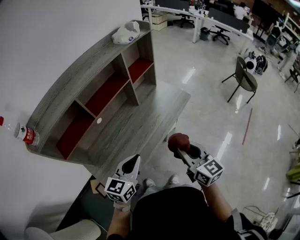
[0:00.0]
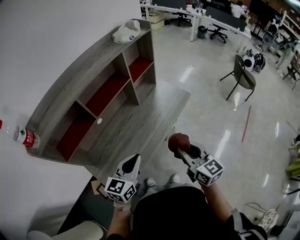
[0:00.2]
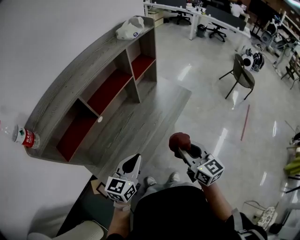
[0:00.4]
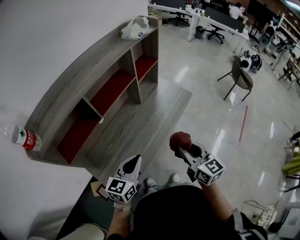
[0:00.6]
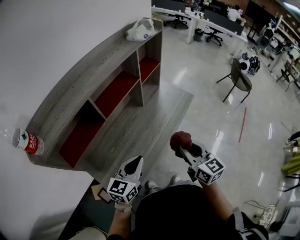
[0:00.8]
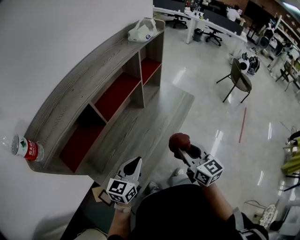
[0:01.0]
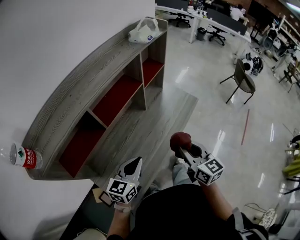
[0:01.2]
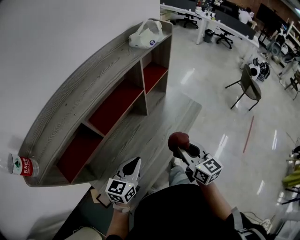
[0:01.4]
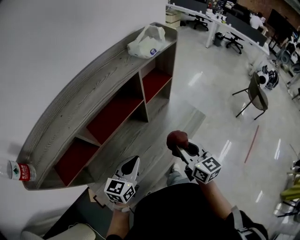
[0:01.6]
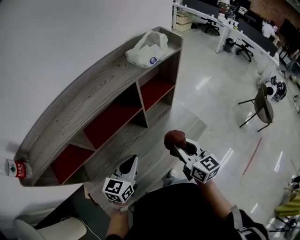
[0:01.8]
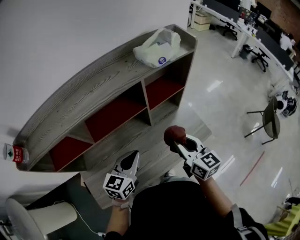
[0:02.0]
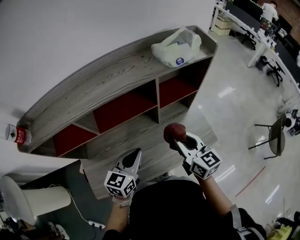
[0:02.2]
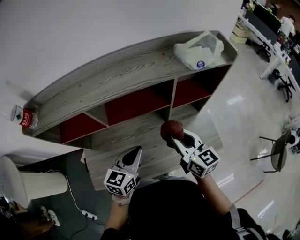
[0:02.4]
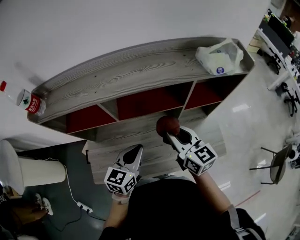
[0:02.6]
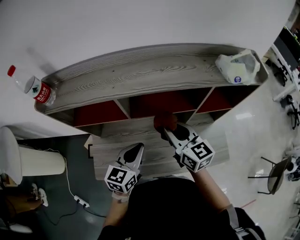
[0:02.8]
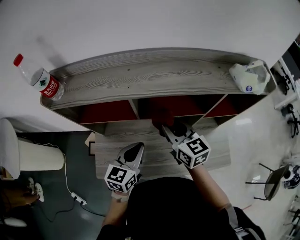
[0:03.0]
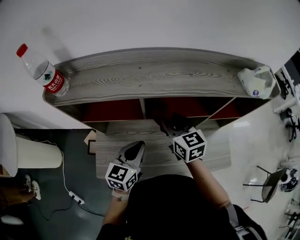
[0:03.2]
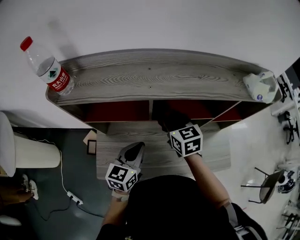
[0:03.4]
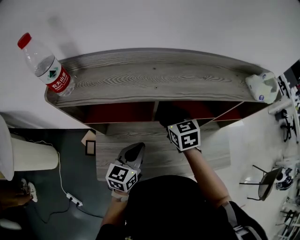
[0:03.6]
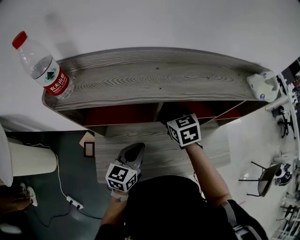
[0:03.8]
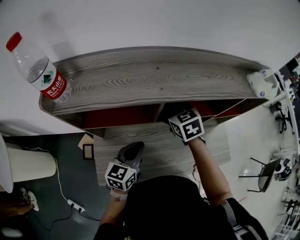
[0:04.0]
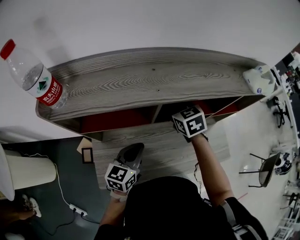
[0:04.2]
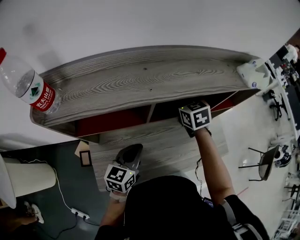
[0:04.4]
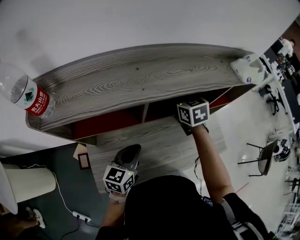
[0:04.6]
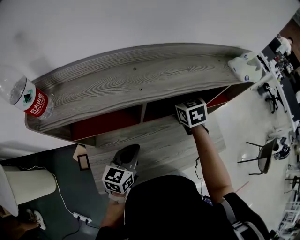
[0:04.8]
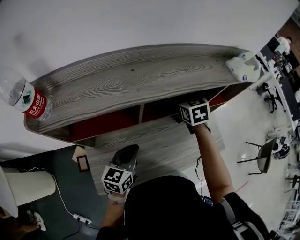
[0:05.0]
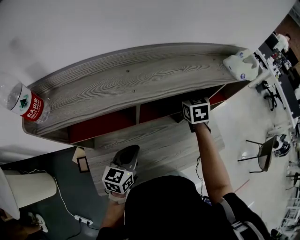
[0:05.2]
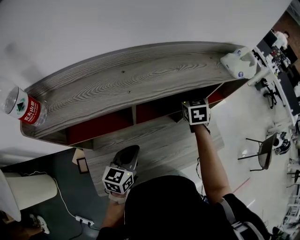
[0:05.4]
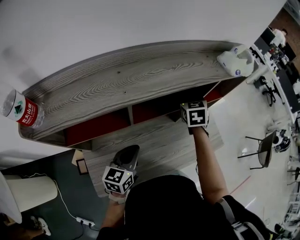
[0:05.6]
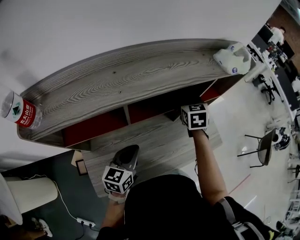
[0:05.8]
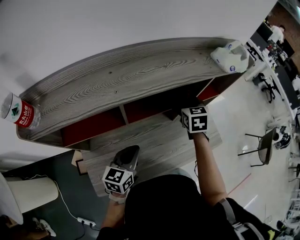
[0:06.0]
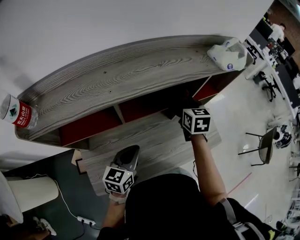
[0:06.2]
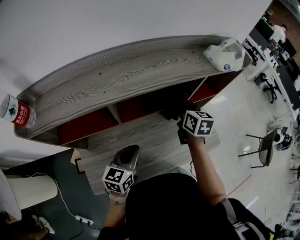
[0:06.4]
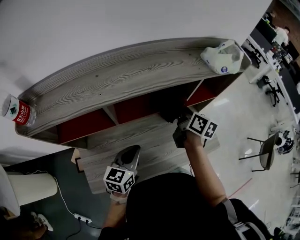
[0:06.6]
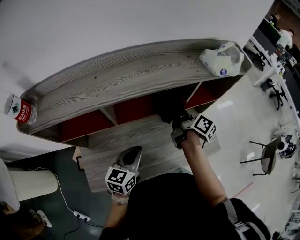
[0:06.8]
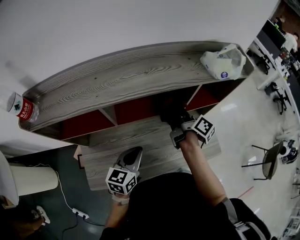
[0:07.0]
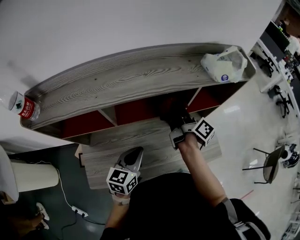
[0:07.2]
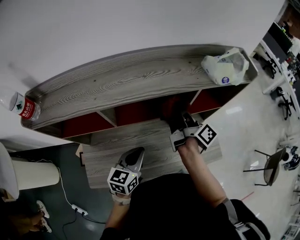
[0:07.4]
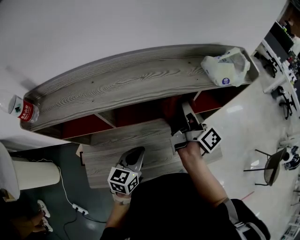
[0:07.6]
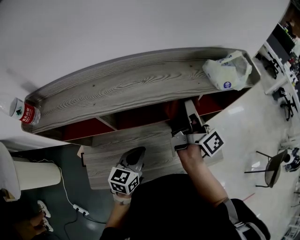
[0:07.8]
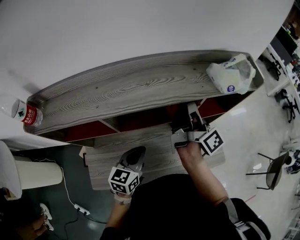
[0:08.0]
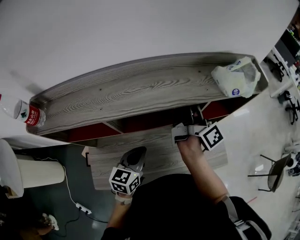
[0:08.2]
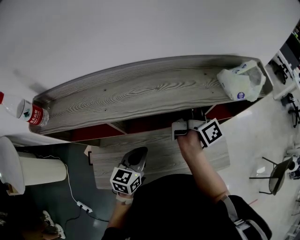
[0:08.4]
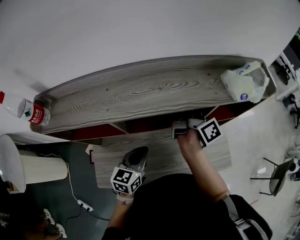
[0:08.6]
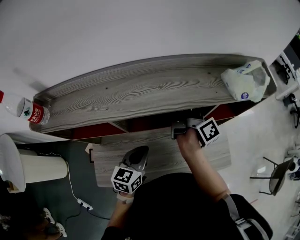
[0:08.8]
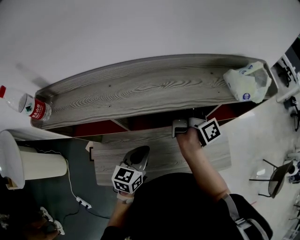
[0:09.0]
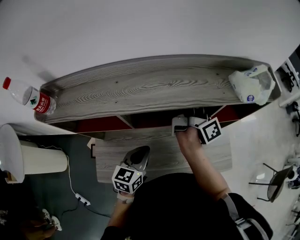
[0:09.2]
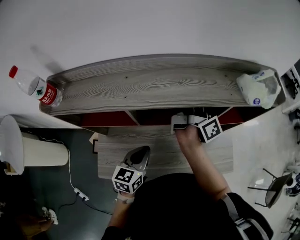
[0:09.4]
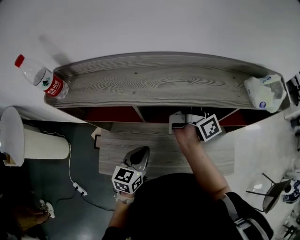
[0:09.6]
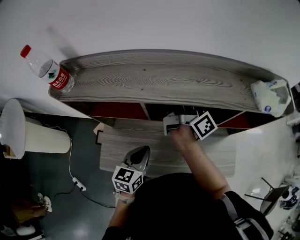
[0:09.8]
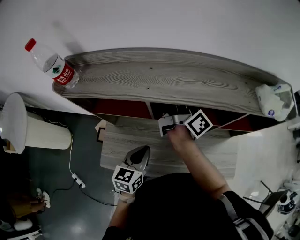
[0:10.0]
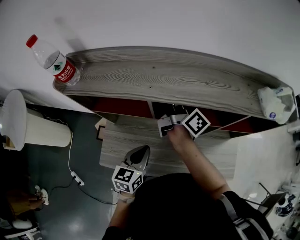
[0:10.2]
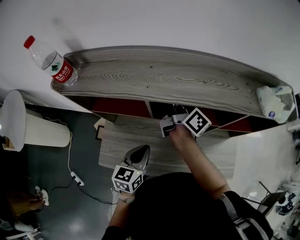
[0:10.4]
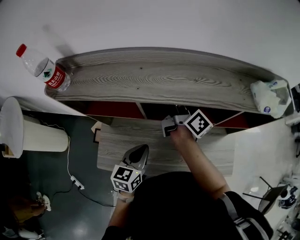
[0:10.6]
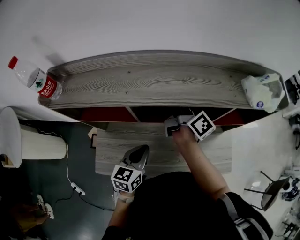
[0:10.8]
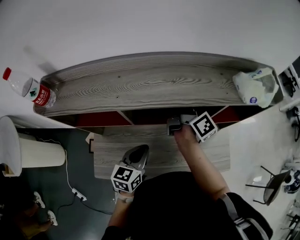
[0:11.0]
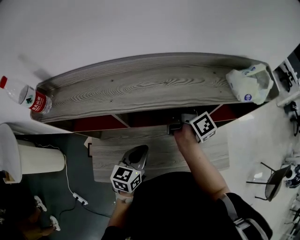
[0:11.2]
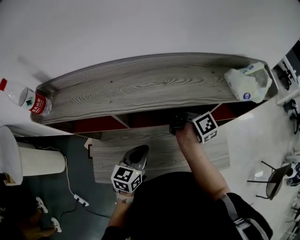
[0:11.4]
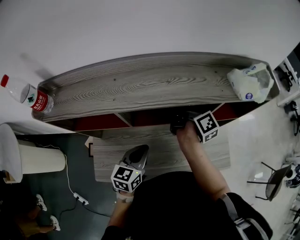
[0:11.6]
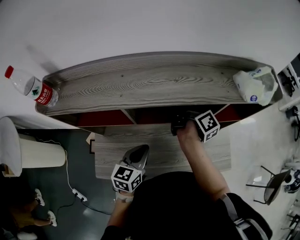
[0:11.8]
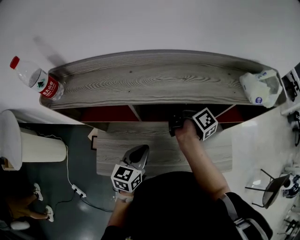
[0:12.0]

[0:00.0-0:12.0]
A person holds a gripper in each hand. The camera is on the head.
0:00.0 to 0:01.6: The grippers both shift forward by about 20 cm.
0:01.6 to 0:03.0: The right gripper moves approximately 25 cm, and turns by approximately 50 degrees, while the left gripper shifts by some 10 cm, and swivels some 40 degrees.
0:03.0 to 0:04.4: The left gripper heads to the left and downward, covering about 10 cm; the right gripper goes approximately 15 cm forward and downward, and turns by approximately 30 degrees.
0:04.4 to 0:06.0: The right gripper moves to the right, some 15 cm, and changes its angle by about 20 degrees, while the left gripper goes approximately 5 cm to the right.
0:06.0 to 0:07.6: The left gripper is displaced to the right by some 10 cm, while the right gripper is displaced upward by about 10 cm, and twists roughly 80 degrees clockwise, seen from behind.
0:07.6 to 0:09.0: The right gripper goes some 5 cm forward.
0:09.0 to 0:10.4: The left gripper shifts by about 10 cm, while the right gripper ends up approximately 20 cm from where it was, and rotates about 40 degrees.
0:10.4 to 0:12.0: The right gripper moves to the right and downward, about 15 cm, and turns by about 30 degrees.

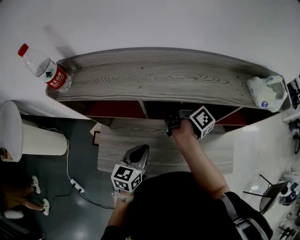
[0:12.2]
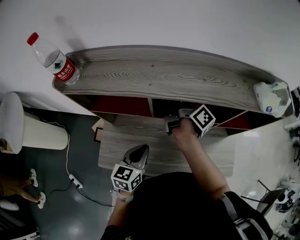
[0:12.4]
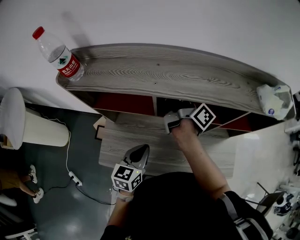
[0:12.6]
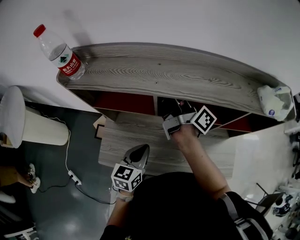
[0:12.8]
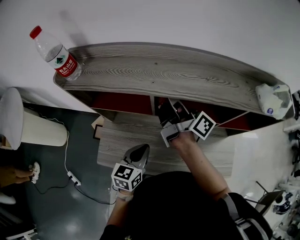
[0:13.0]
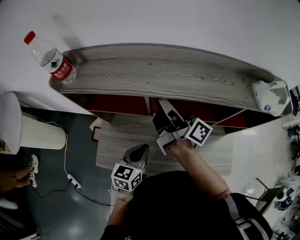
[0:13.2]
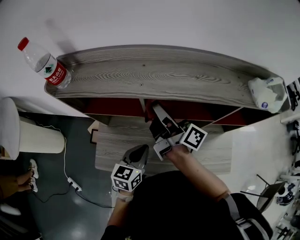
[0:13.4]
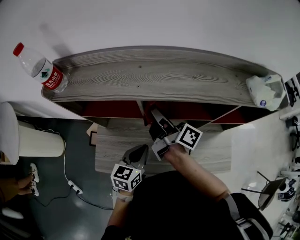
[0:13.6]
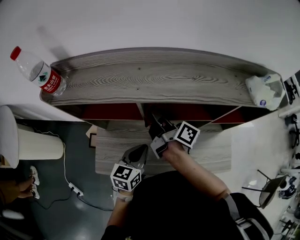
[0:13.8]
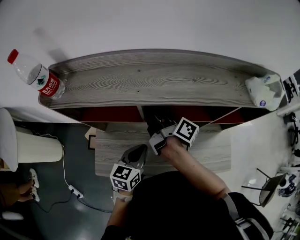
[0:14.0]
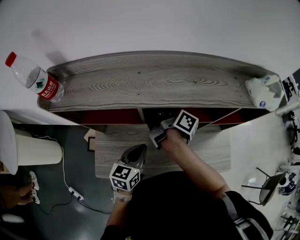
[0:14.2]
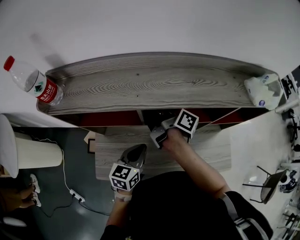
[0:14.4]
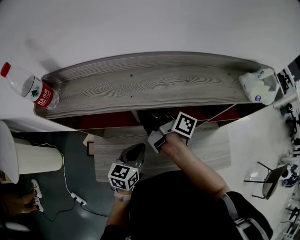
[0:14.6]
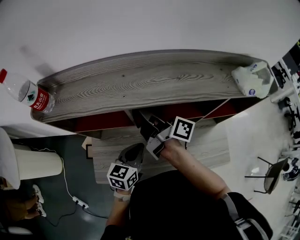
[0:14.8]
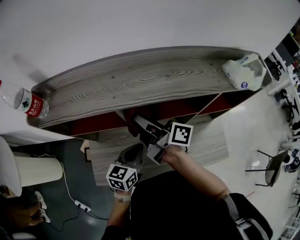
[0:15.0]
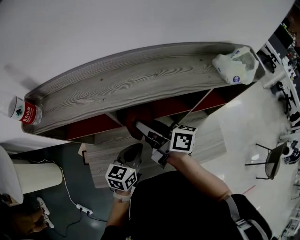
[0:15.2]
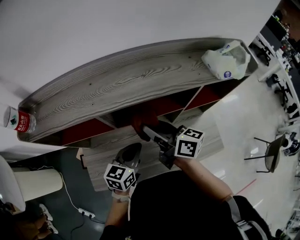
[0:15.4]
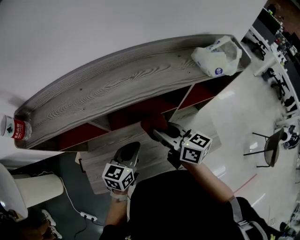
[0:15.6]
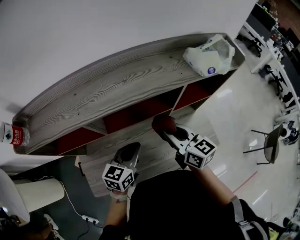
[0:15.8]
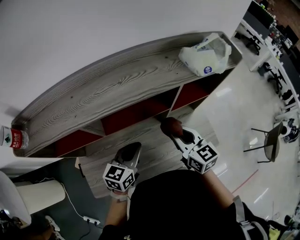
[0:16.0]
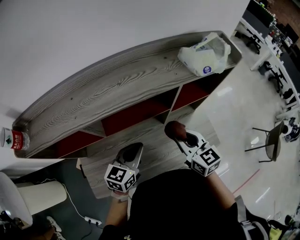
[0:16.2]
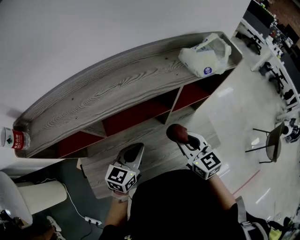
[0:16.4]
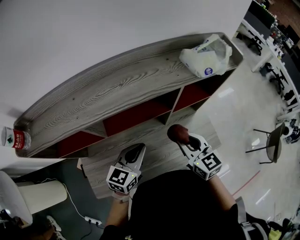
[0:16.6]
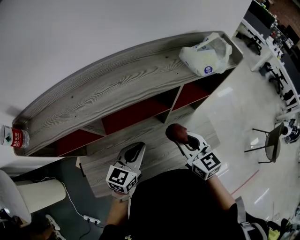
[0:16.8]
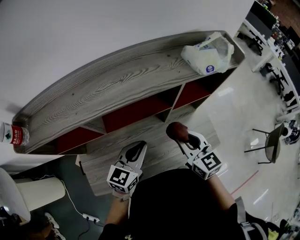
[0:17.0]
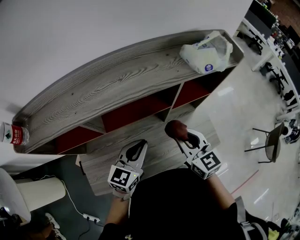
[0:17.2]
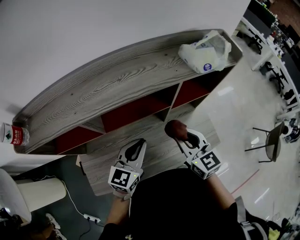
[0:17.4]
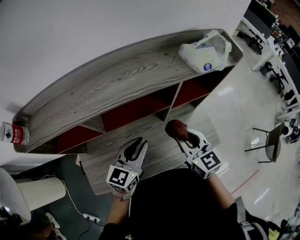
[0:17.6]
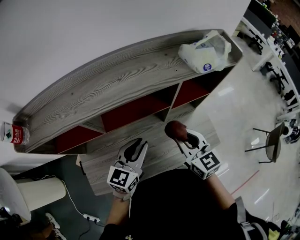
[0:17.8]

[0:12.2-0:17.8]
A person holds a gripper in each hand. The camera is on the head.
0:12.2 to 0:13.6: The right gripper goes roughly 15 cm to the left and backward, and swivels about 30 degrees.
0:13.6 to 0:15.0: The right gripper reaches roughly 5 cm forward, then returns.
0:15.0 to 0:16.4: The right gripper travels to the right by roughly 25 cm, and rolls counterclockwise, seen from behind, by some 60 degrees; the left gripper is displaced to the right by some 10 cm.
0:16.4 to 0:17.8: The grippers stay close to where they were, moving slightly.

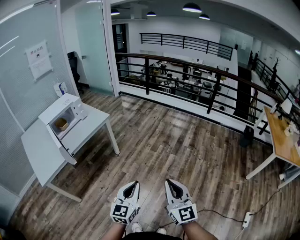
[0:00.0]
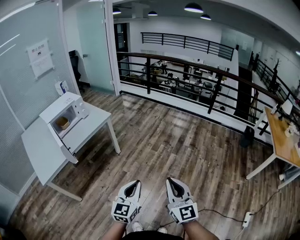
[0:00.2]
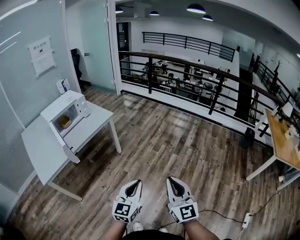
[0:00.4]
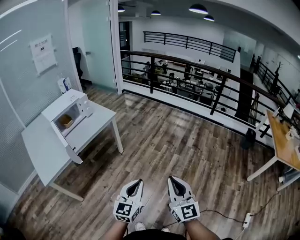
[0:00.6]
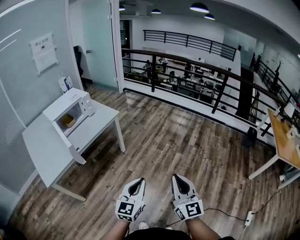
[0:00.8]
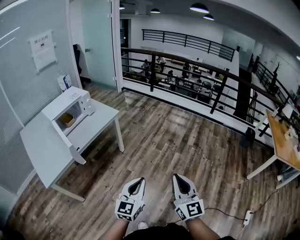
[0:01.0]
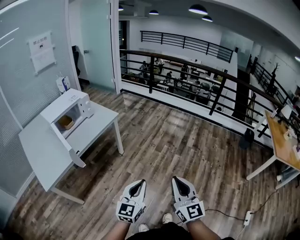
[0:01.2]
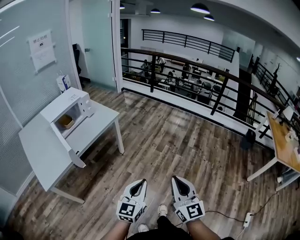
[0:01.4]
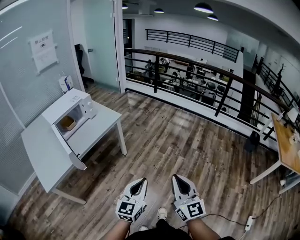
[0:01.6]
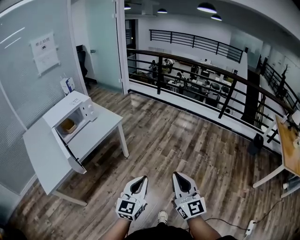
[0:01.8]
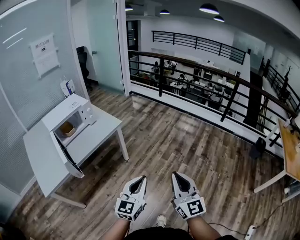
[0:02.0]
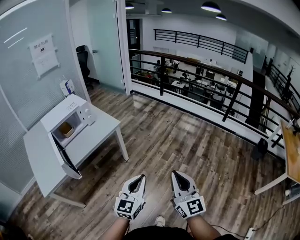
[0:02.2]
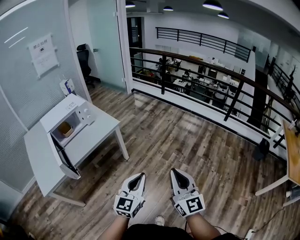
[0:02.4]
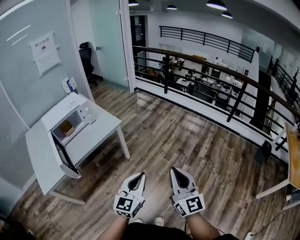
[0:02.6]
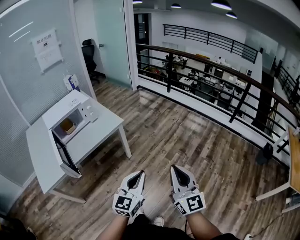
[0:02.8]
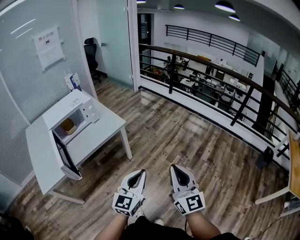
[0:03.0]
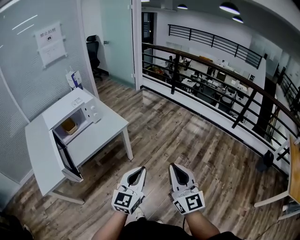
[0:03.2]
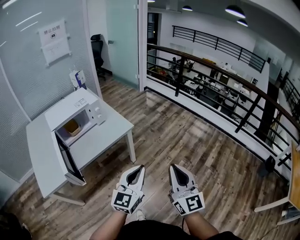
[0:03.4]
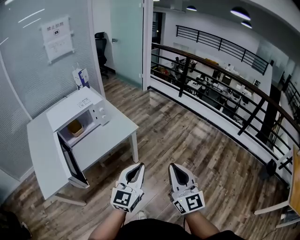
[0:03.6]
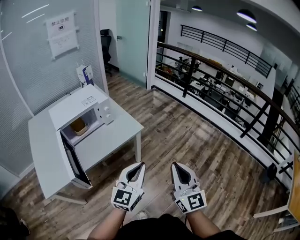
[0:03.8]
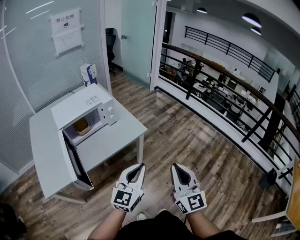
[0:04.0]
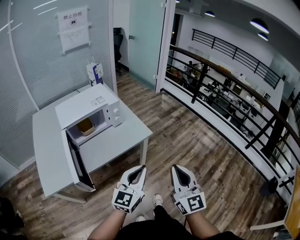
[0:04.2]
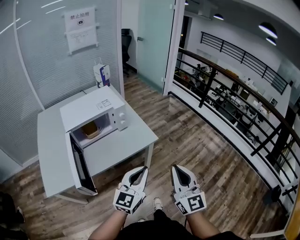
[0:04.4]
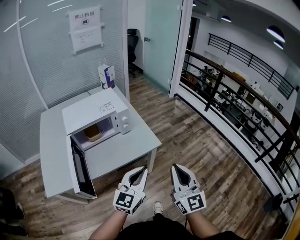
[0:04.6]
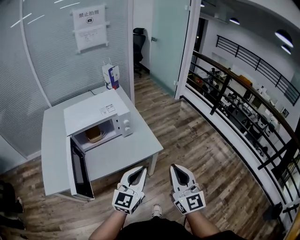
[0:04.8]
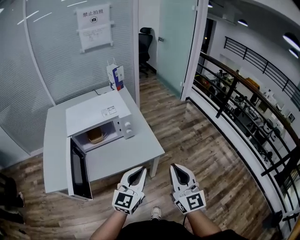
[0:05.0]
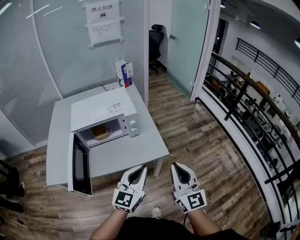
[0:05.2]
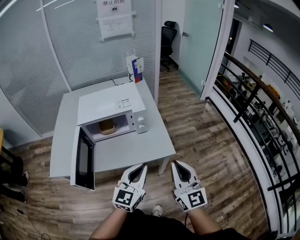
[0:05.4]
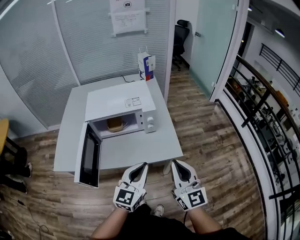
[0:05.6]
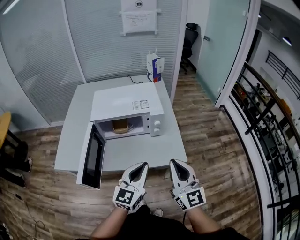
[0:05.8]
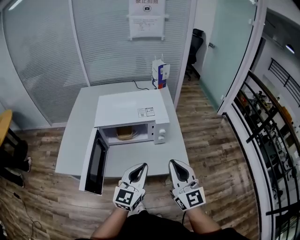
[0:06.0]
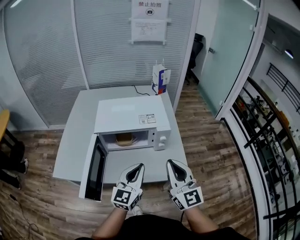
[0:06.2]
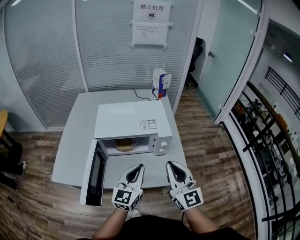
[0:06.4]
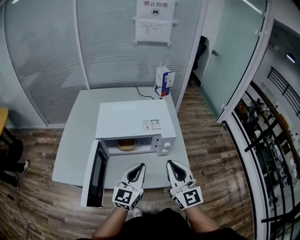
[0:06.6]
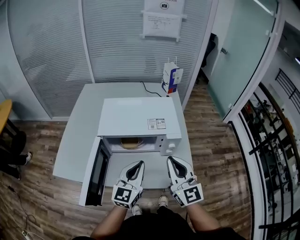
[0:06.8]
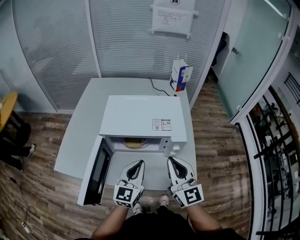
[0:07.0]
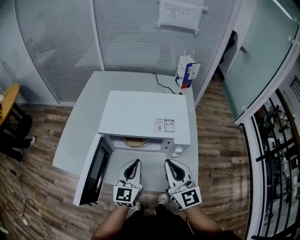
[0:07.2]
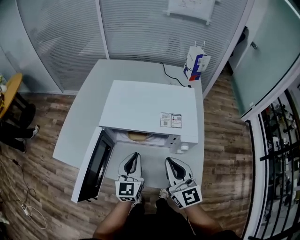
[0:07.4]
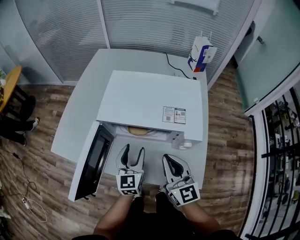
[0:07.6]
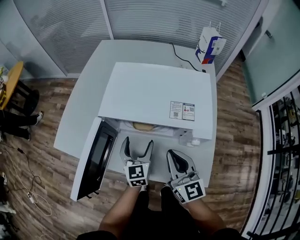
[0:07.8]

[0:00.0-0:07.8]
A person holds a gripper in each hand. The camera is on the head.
0:00.0 to 0:01.6: The two grippers go roughly 15 cm to the left and forward.
0:01.6 to 0:03.2: The grippers both shift forward by approximately 20 cm.
0:03.2 to 0:04.6: Both grippers travel together forward and to the left, some 25 cm.
0:04.6 to 0:06.2: The right gripper changes place by approximately 25 cm, and turns by roughly 30 degrees. Meanwhile the left gripper changes place by about 20 cm, and turns by approximately 30 degrees.
0:06.2 to 0:07.8: The right gripper changes place by some 20 cm, and turns by some 20 degrees, while the left gripper shifts by some 25 cm, rotates about 40 degrees, and opens its fingers.
